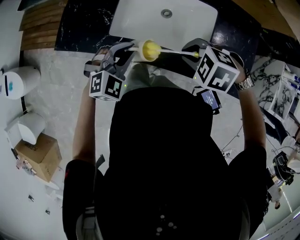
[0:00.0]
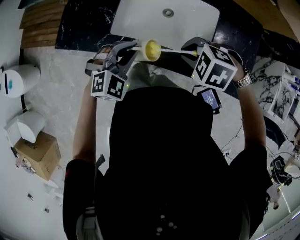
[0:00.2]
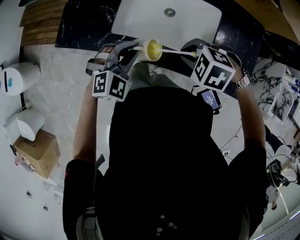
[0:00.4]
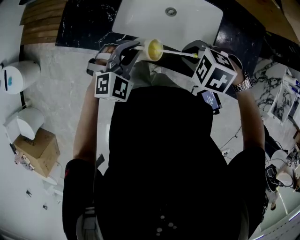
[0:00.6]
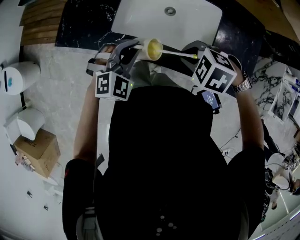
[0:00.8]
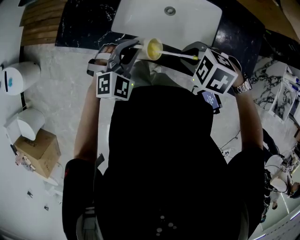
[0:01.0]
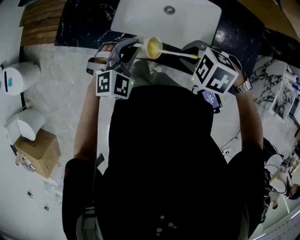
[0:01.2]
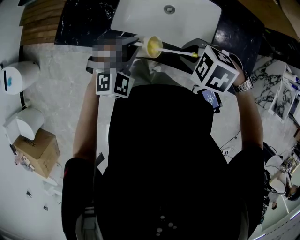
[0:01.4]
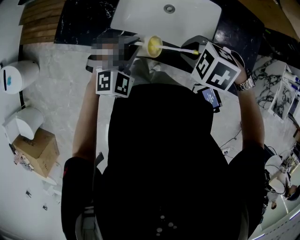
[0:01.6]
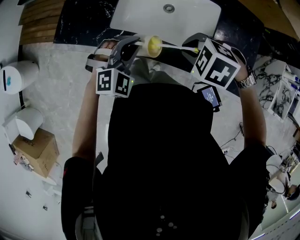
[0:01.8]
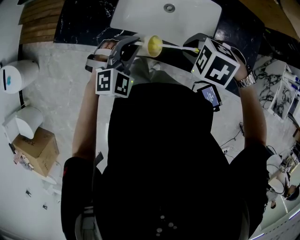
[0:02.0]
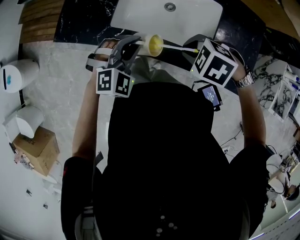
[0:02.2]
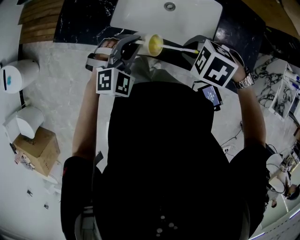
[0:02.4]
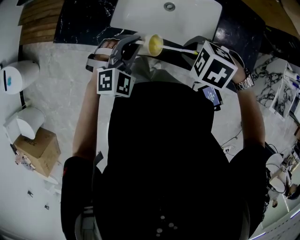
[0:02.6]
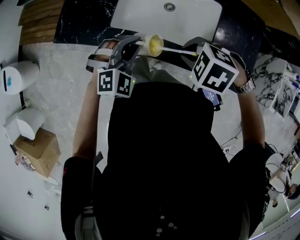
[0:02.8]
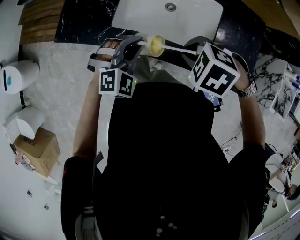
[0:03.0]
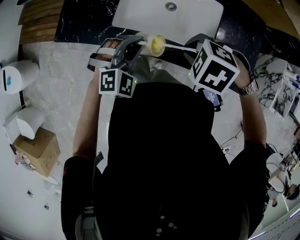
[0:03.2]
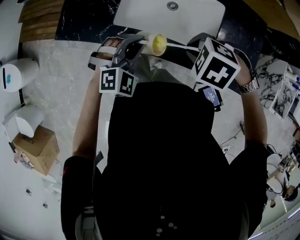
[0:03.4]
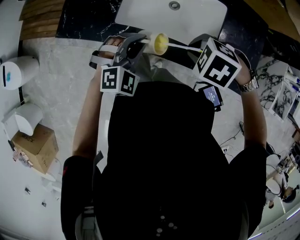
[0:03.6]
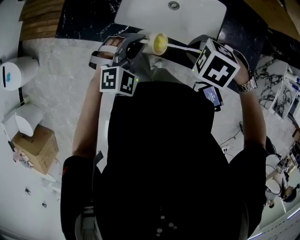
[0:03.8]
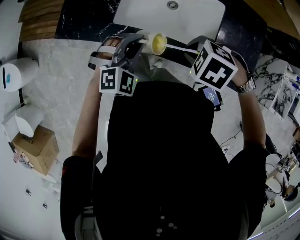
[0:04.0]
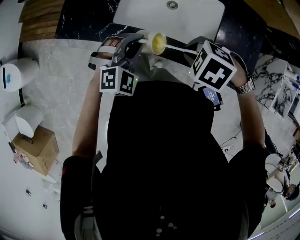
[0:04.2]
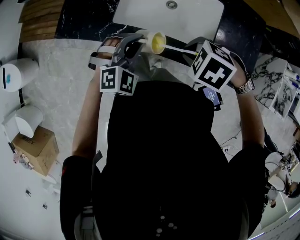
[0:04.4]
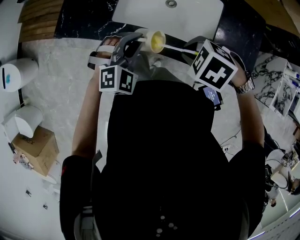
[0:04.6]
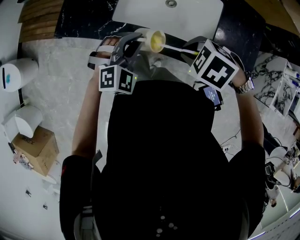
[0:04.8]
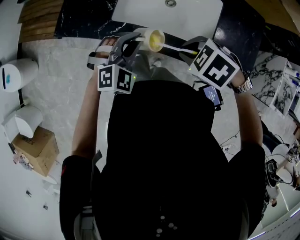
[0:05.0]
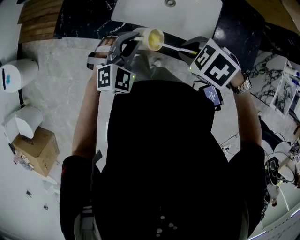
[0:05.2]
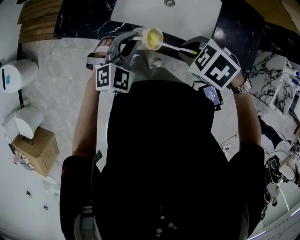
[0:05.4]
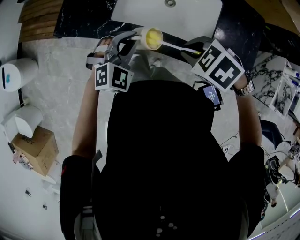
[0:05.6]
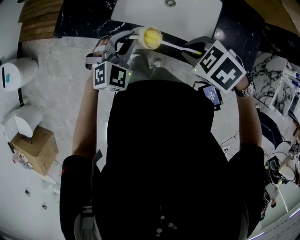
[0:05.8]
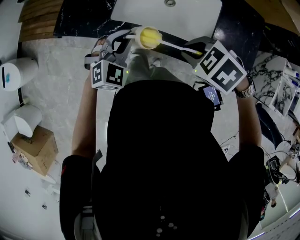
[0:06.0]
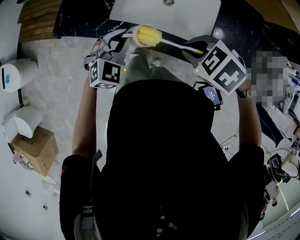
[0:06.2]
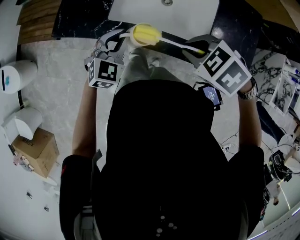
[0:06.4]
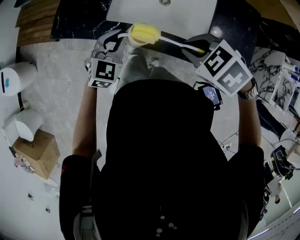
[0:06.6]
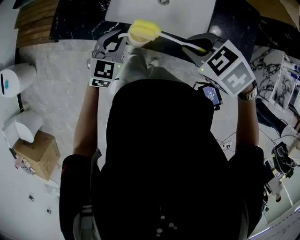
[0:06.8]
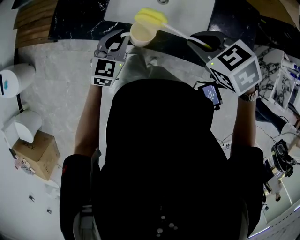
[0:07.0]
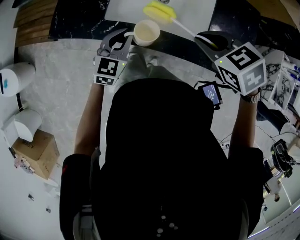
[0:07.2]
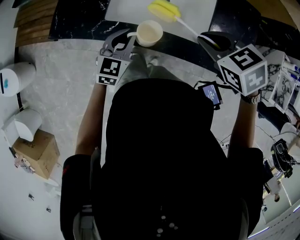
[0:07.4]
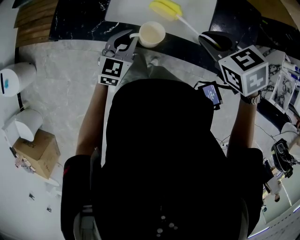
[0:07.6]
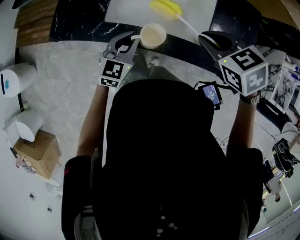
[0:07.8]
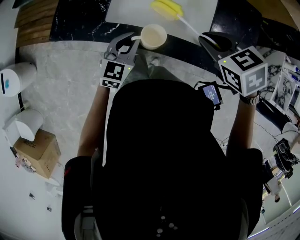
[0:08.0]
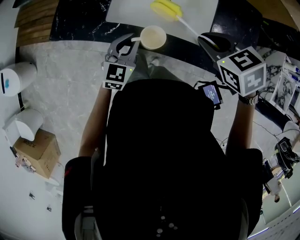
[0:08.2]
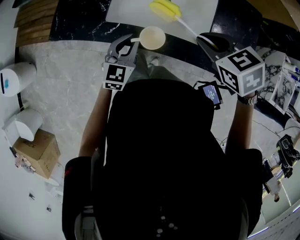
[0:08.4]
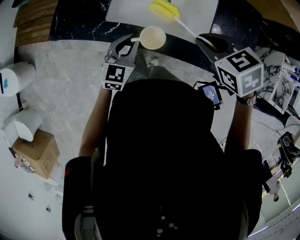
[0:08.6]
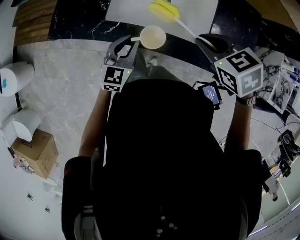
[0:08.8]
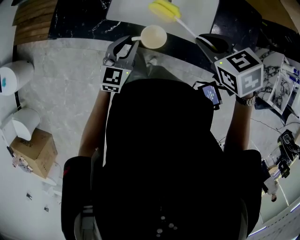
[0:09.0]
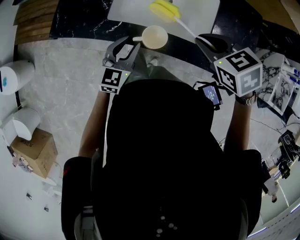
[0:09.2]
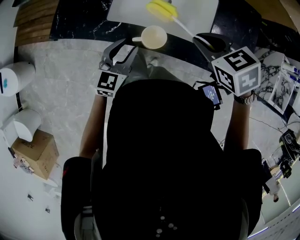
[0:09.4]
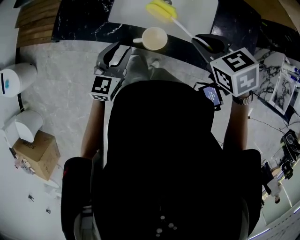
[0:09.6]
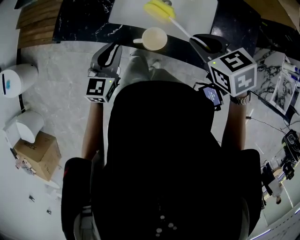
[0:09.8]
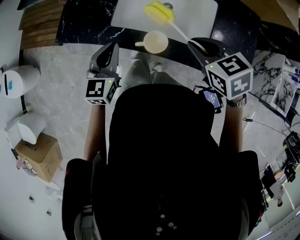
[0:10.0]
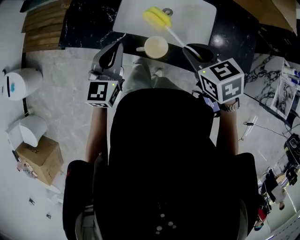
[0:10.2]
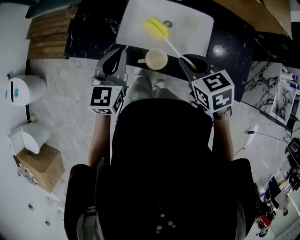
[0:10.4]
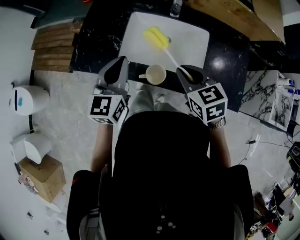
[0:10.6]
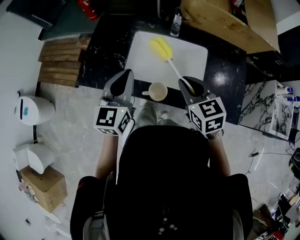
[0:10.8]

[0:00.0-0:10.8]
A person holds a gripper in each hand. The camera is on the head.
0:00.0 to 0:06.2: The grippers move only a little.
0:06.2 to 0:07.8: The right gripper moves to the right, roughly 5 cm, and changes its angle by roughly 30 degrees. The left gripper swivels roughly 20 degrees.
0:07.8 to 0:09.2: The left gripper opens its fingers.
0:09.2 to 0:10.8: The left gripper travels upward by about 20 cm, and closes; the right gripper moves upward, some 5 cm, and changes its angle by approximately 30 degrees.

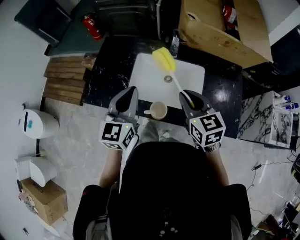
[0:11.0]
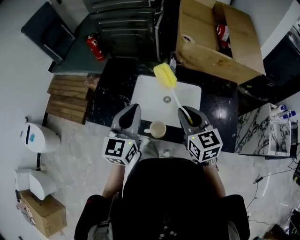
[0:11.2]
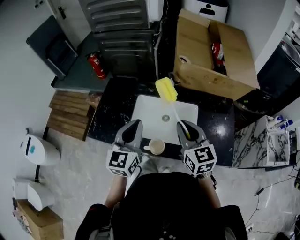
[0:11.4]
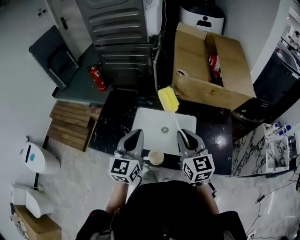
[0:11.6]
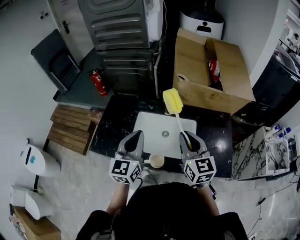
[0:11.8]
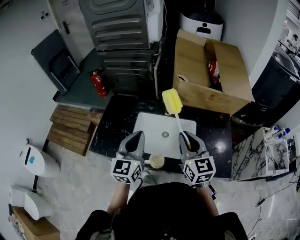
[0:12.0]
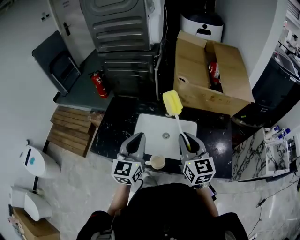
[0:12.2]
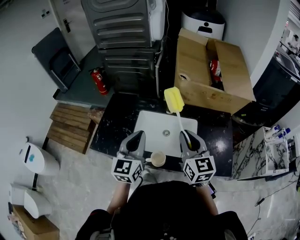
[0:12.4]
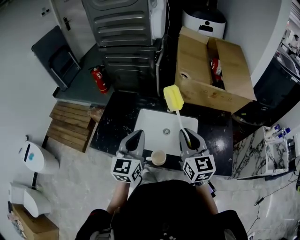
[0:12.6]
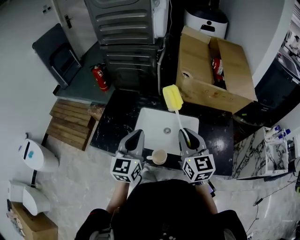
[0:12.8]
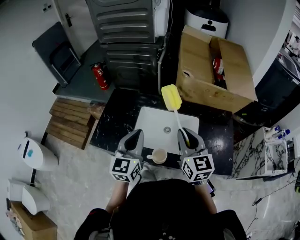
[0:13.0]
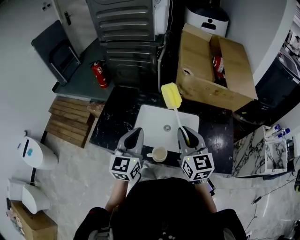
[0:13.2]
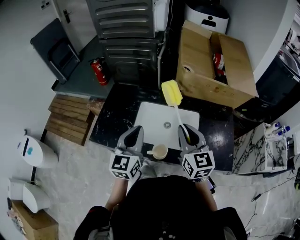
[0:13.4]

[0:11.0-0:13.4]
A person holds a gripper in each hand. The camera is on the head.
0:11.0 to 0:12.2: The right gripper moves upward, approximately 10 cm, and rotates roughly 20 degrees, while the left gripper changes place by some 5 cm.
0:12.2 to 0:13.4: The grippers make only small movements.

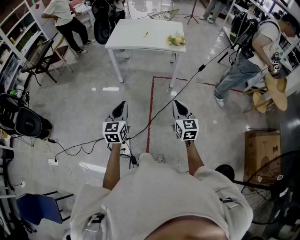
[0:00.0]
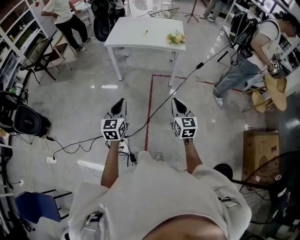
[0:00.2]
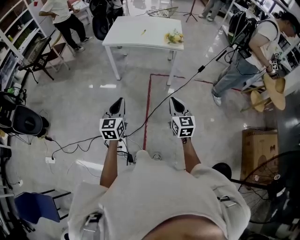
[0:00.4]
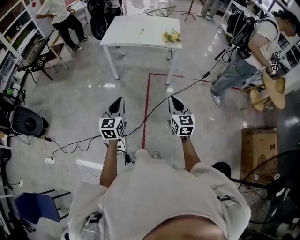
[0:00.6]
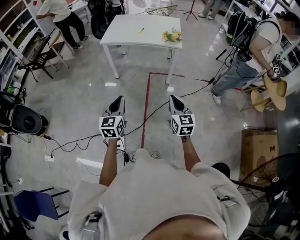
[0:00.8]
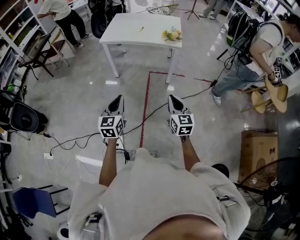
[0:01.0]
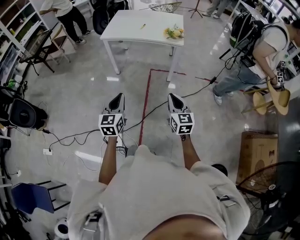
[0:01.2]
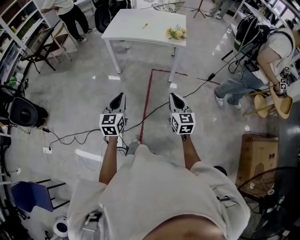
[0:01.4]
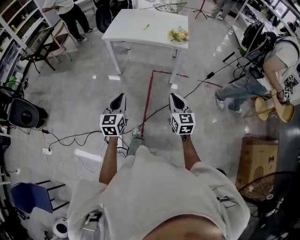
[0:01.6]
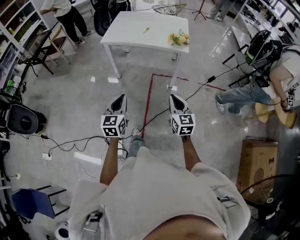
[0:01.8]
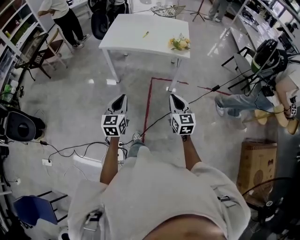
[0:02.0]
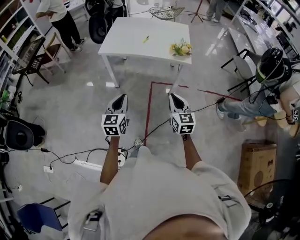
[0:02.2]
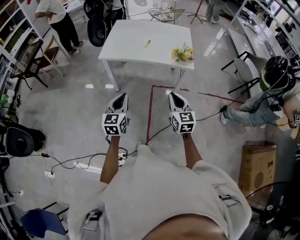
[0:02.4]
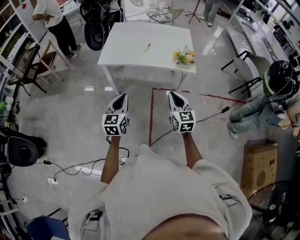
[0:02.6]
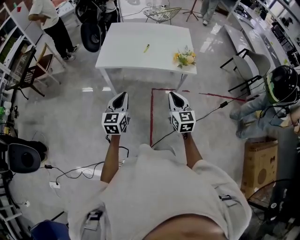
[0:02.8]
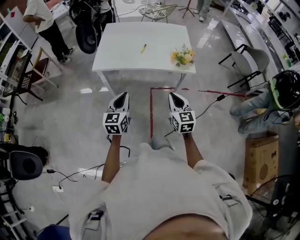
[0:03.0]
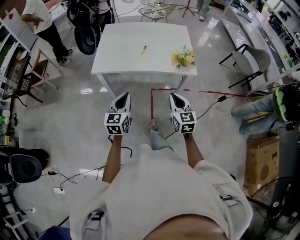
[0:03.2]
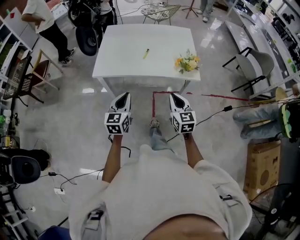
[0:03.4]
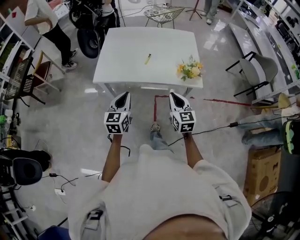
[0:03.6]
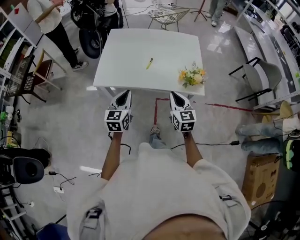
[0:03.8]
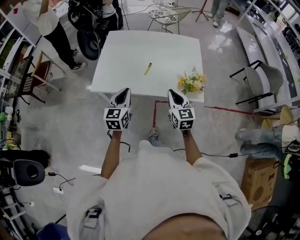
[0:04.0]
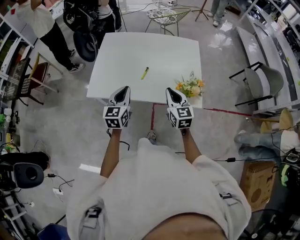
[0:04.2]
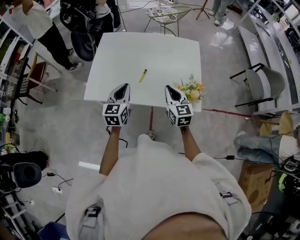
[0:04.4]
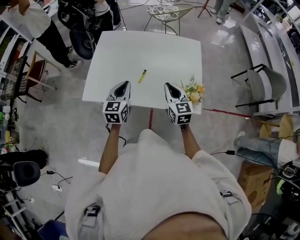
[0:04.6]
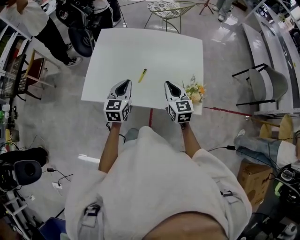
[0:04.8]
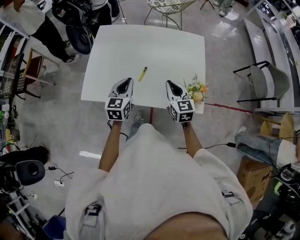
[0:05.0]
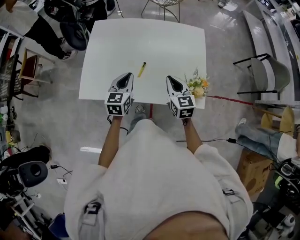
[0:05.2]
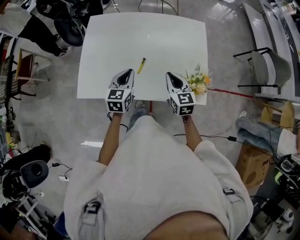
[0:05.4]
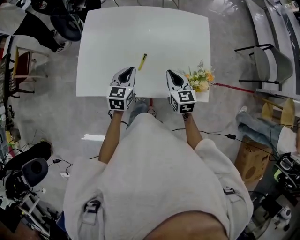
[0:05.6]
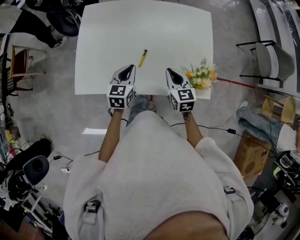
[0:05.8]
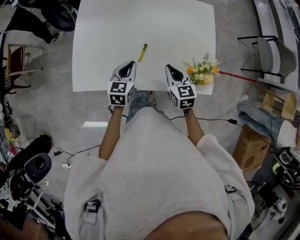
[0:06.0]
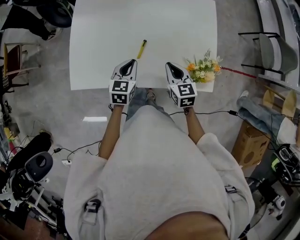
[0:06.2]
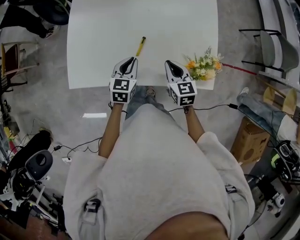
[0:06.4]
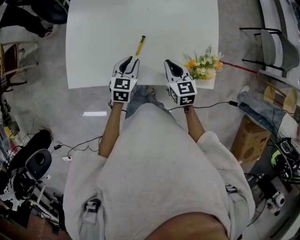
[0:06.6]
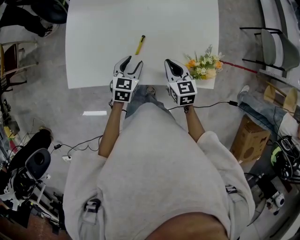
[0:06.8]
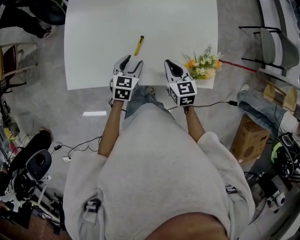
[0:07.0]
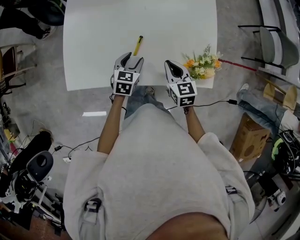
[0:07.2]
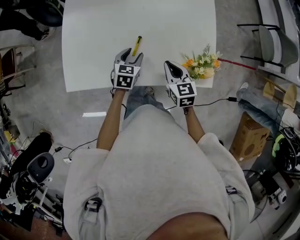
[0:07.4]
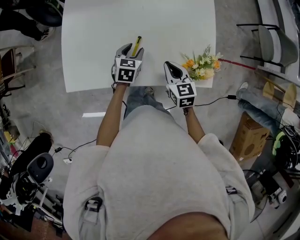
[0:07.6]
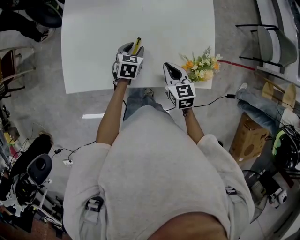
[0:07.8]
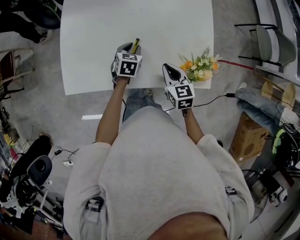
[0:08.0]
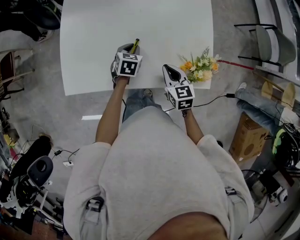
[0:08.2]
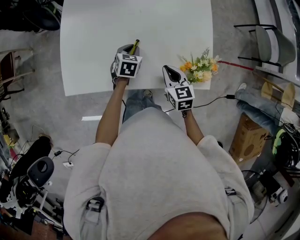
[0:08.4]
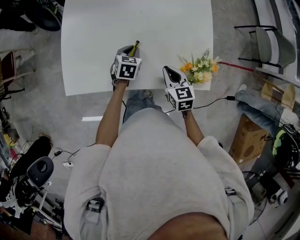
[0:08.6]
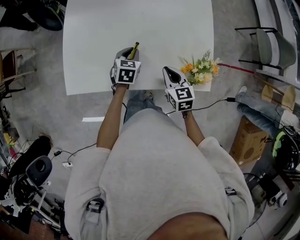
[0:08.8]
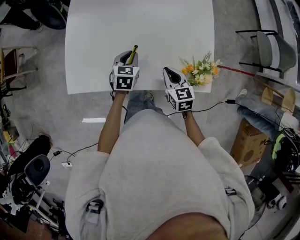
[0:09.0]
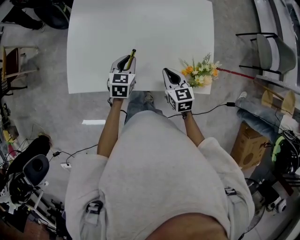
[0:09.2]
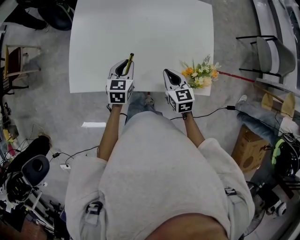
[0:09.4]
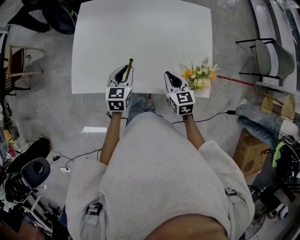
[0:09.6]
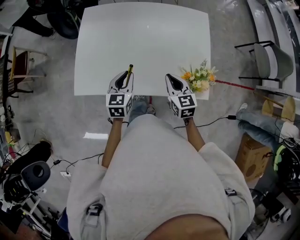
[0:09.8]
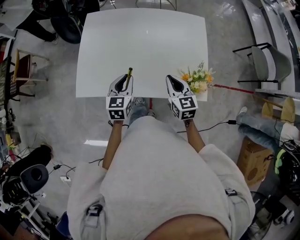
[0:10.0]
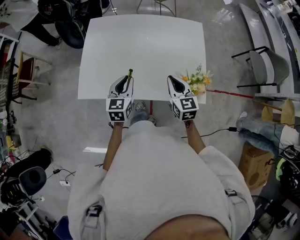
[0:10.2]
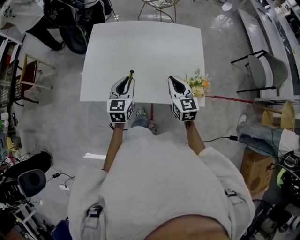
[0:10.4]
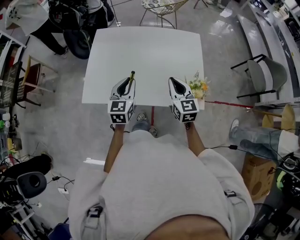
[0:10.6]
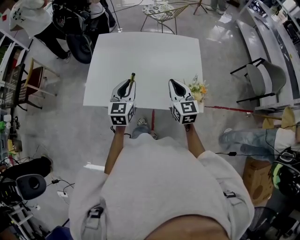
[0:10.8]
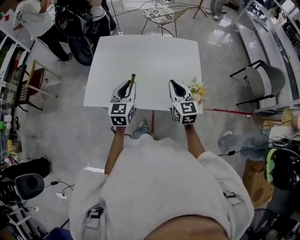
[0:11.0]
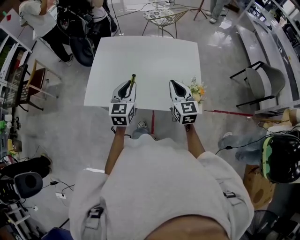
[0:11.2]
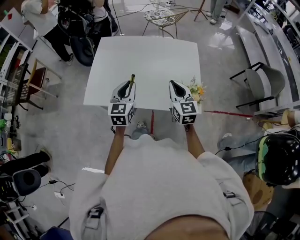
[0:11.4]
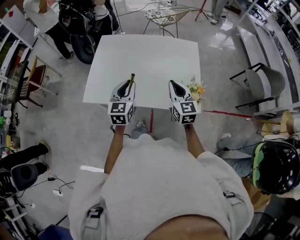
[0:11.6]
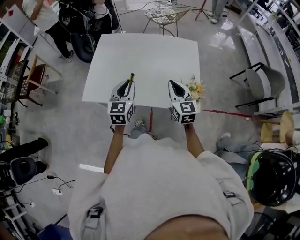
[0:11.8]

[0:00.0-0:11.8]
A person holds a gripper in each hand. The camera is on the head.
0:00.0 to 0:01.4: The right gripper shifts by roughly 5 cm. Meanwhile the left gripper shifts by approximately 5 cm.
0:01.4 to 0:03.0: Both grippers move forward, some 25 cm.
0:03.0 to 0:04.4: The two grippers go some 25 cm forward.
0:04.4 to 0:06.0: The grippers both shift downward by some 10 cm.
0:06.0 to 0:07.4: The left gripper travels downward by some 5 cm, and opens up.
0:07.4 to 0:08.8: The left gripper closes its fingers.
0:08.8 to 0:10.4: The left gripper travels upward and to the left by roughly 15 cm, and changes its angle by roughly 30 degrees; the right gripper shifts approximately 10 cm upward, and changes its angle by approximately 20 degrees.
0:10.4 to 0:11.8: The grippers move only a little.
